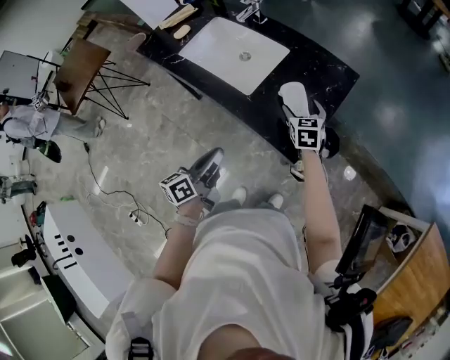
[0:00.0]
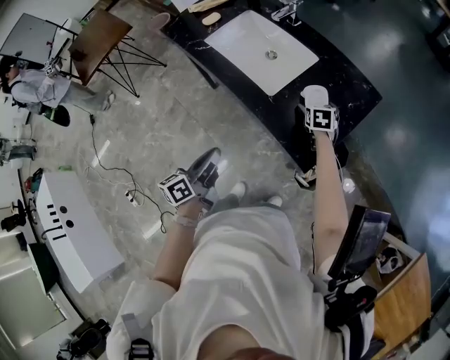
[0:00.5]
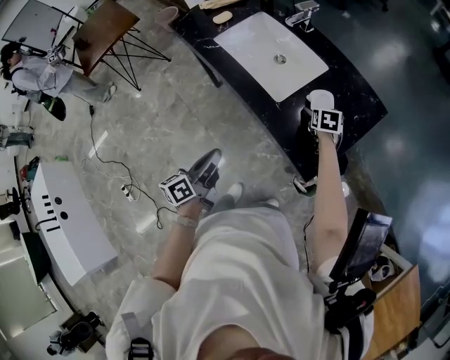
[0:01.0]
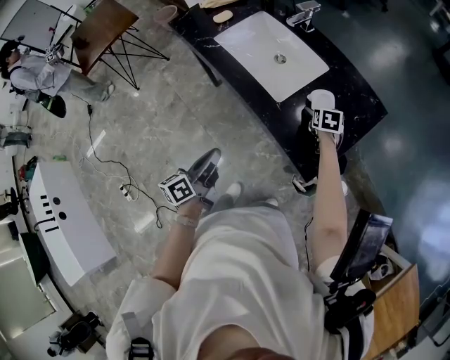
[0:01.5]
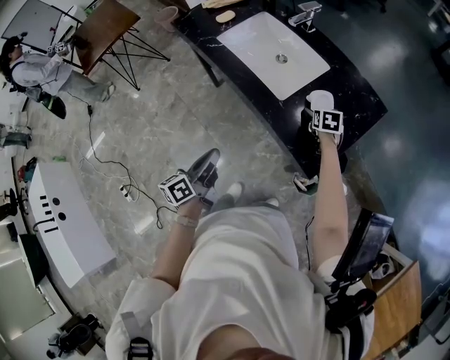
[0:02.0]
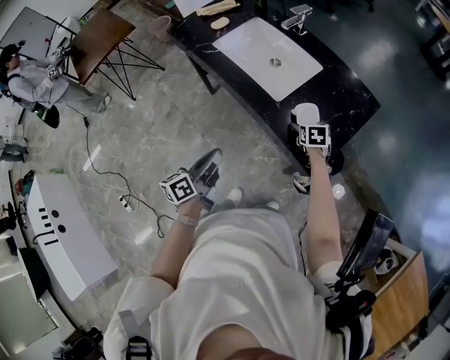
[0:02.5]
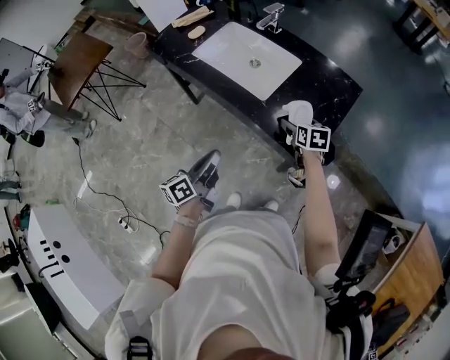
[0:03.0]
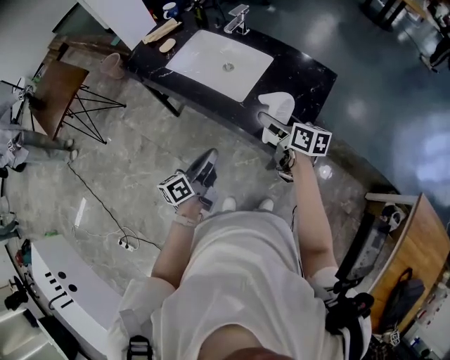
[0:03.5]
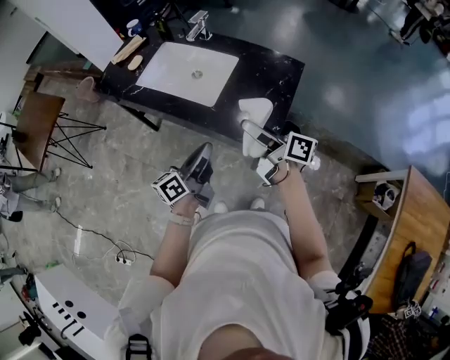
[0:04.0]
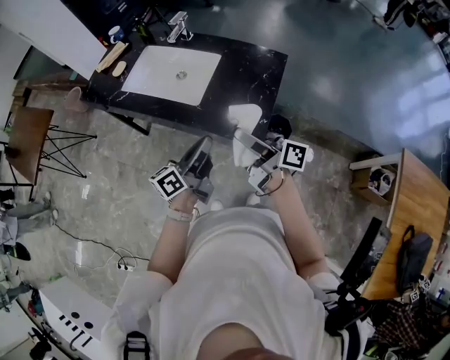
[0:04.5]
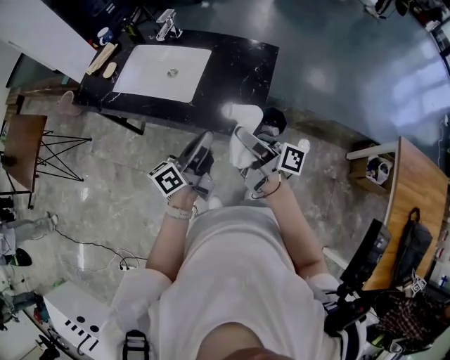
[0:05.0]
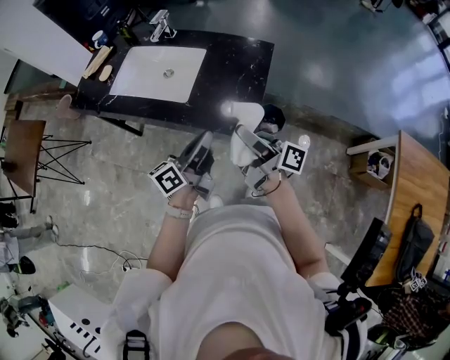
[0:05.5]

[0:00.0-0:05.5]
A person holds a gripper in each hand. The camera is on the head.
0:00.0 to 0:02.0: The right gripper moves downward and forward, about 10 cm, and swivels about 20 degrees. Meanwhile the left gripper goes about 10 cm to the left.
0:02.0 to 0:03.5: The right gripper shifts roughly 25 cm upward and backward, and points its fingers about 30 degrees further upward; the left gripper shifts by some 5 cm, and rotates roughly 20 degrees.
0:03.5 to 0:05.5: The left gripper heads to the right and upward, covering approximately 15 cm, and rotates roughly 20 degrees. The right gripper travels backward, upward and to the right by roughly 15 cm, and tips its fingers upward by roughly 40 degrees.

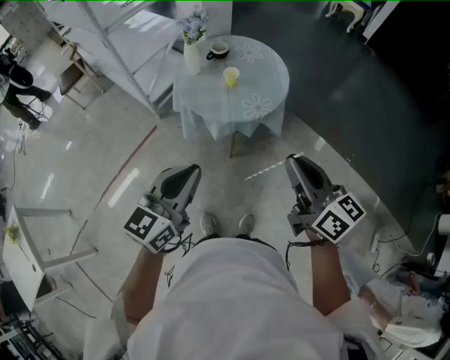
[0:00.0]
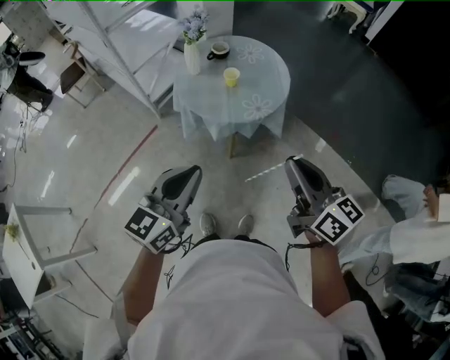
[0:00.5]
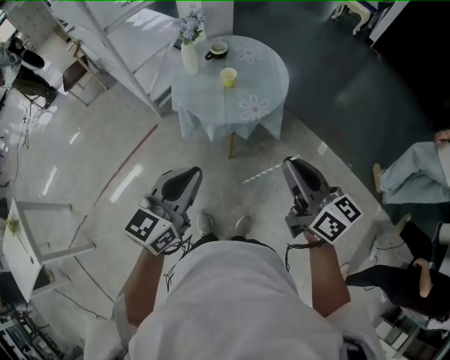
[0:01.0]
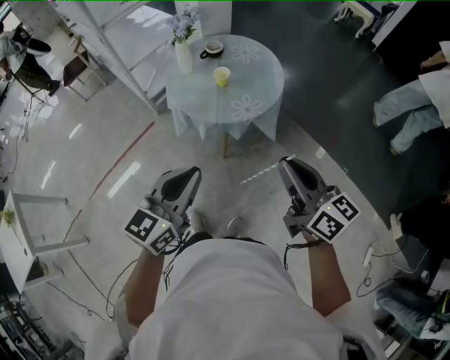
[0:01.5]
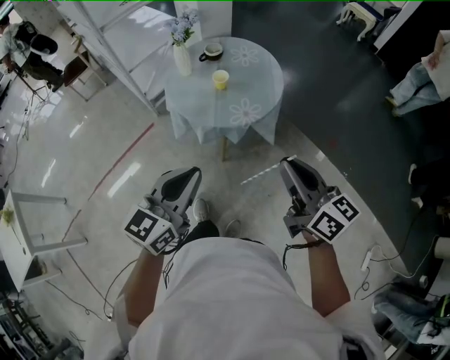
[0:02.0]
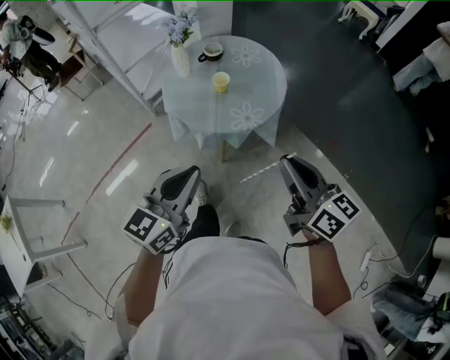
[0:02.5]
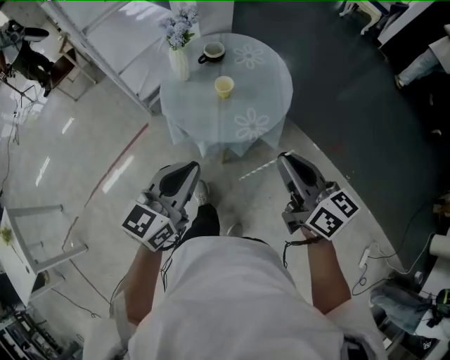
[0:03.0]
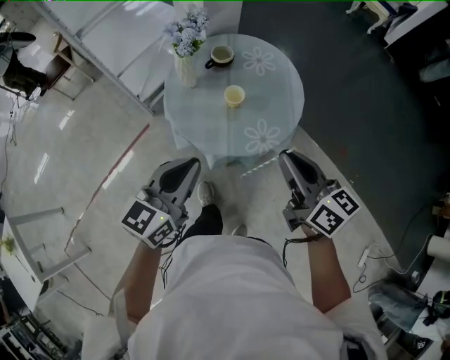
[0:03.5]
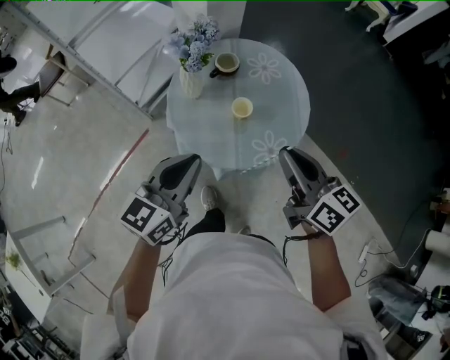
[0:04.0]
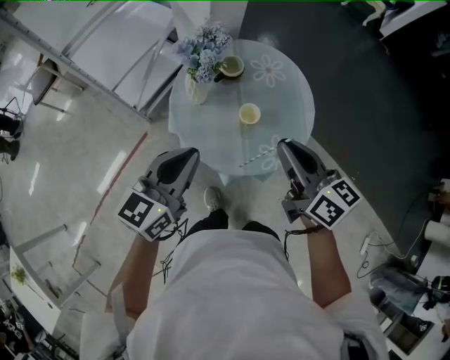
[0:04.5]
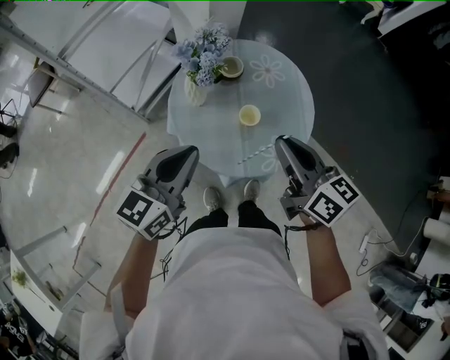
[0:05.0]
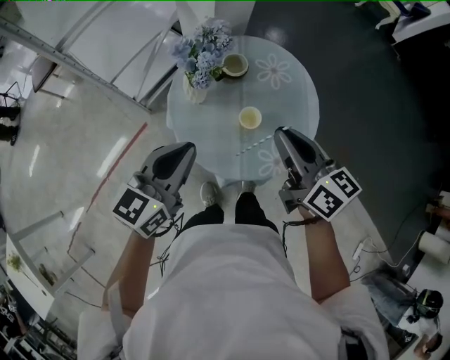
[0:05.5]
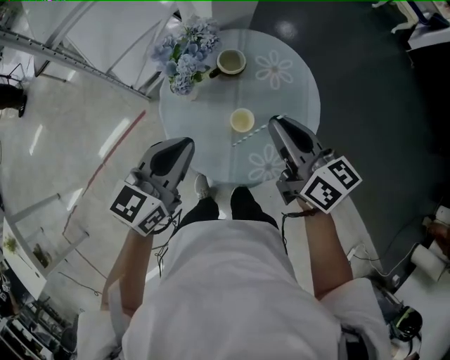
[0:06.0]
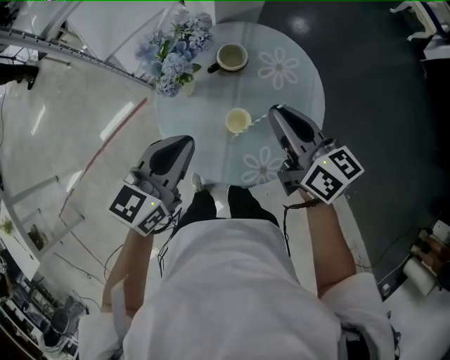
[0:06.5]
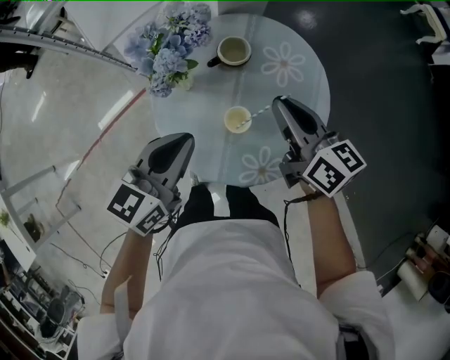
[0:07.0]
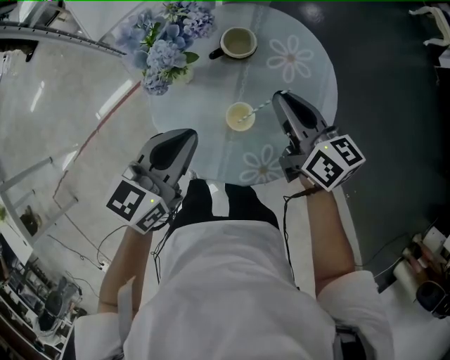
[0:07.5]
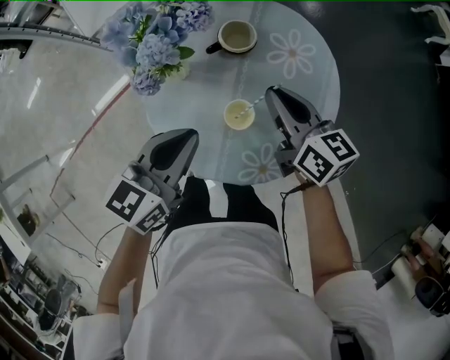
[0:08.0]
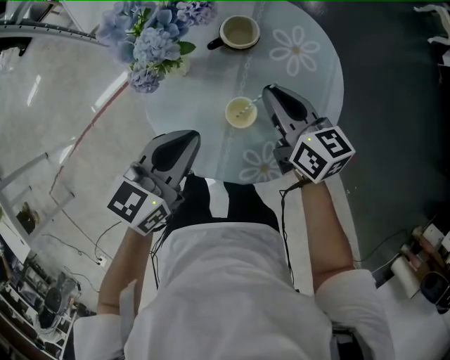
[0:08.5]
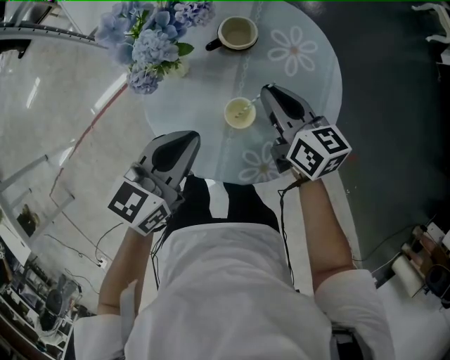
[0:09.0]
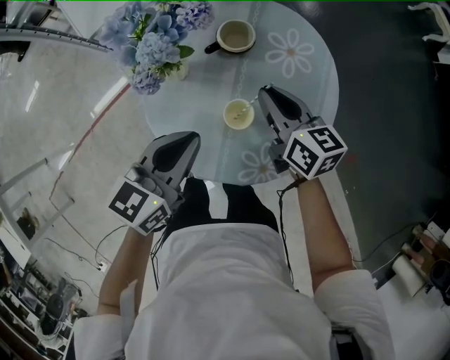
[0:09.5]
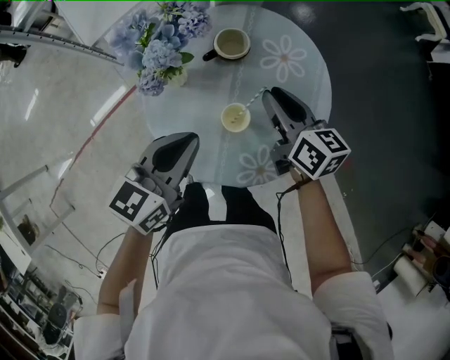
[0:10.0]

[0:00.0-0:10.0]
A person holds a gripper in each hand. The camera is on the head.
0:00.0 to 0:02.0: The two grippers go some 10 cm to the right.
0:02.0 to 0:04.0: Both grippers travel together forward and to the left, some 30 cm.
0:04.0 to 0:06.0: The grippers both shift forward by approximately 15 cm.
0:06.0 to 0:08.0: The left gripper shifts about 10 cm downward. The right gripper heads downward and forward, covering some 15 cm.
0:08.0 to 0:10.0: The grippers make only small movements.

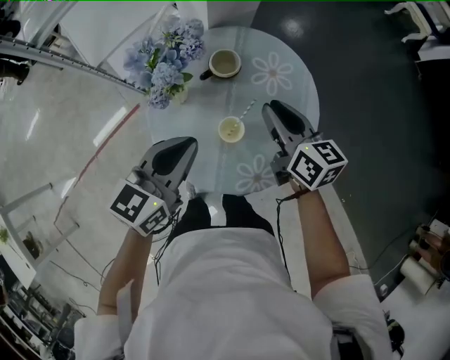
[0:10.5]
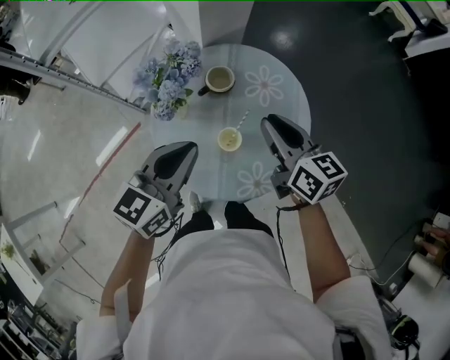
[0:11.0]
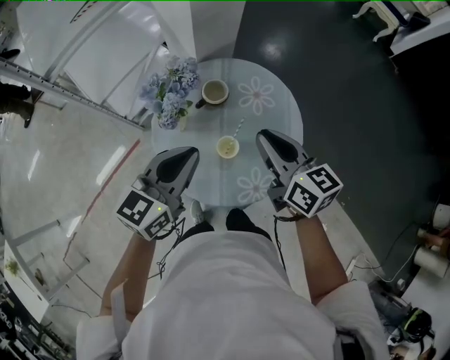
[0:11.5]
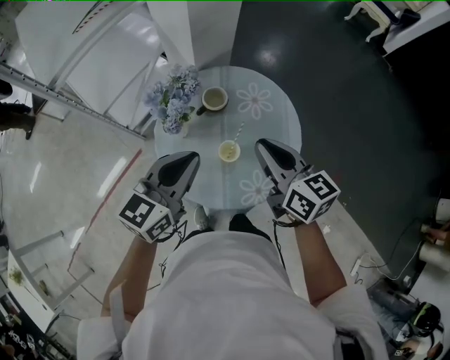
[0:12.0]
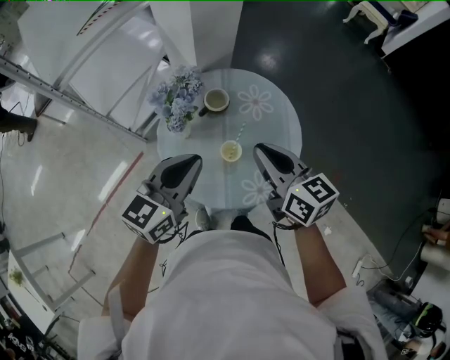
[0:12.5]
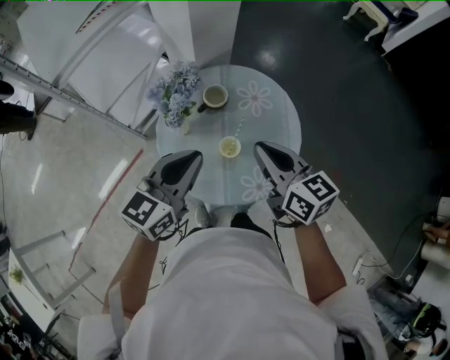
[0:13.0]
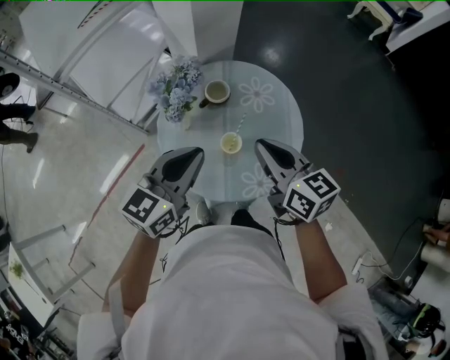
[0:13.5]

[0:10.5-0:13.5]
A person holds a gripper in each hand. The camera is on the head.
0:10.5 to 0:12.0: The right gripper moves upward and backward, about 15 cm. The left gripper travels upward by about 10 cm.
0:12.0 to 0:13.5: The grippers stay close to where they were, moving slightly.

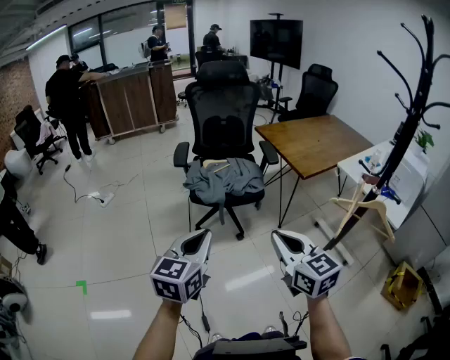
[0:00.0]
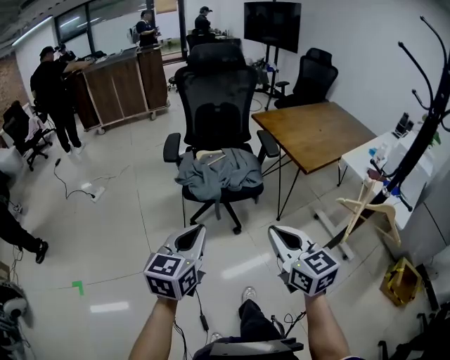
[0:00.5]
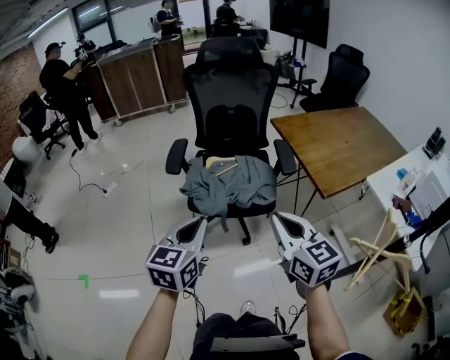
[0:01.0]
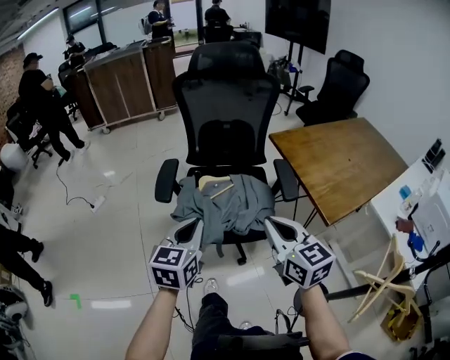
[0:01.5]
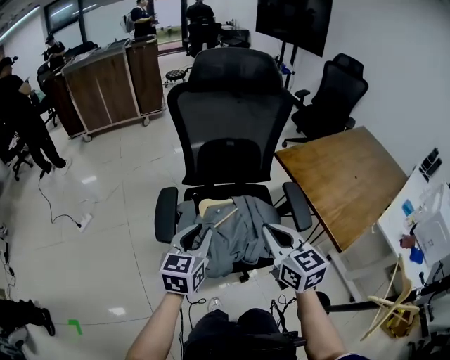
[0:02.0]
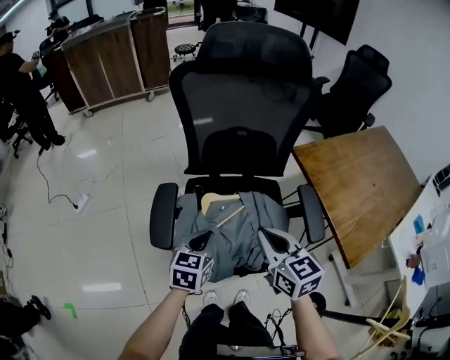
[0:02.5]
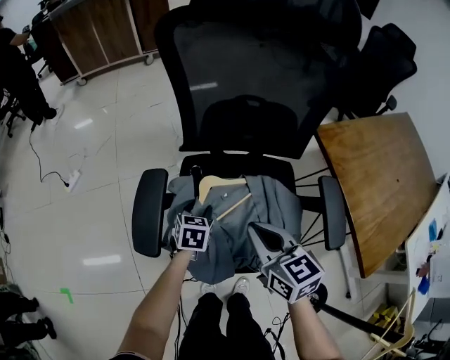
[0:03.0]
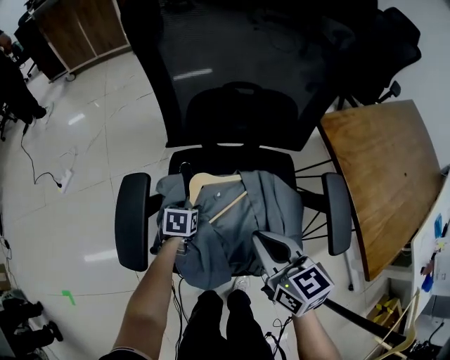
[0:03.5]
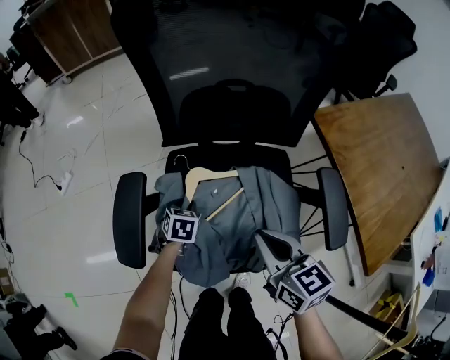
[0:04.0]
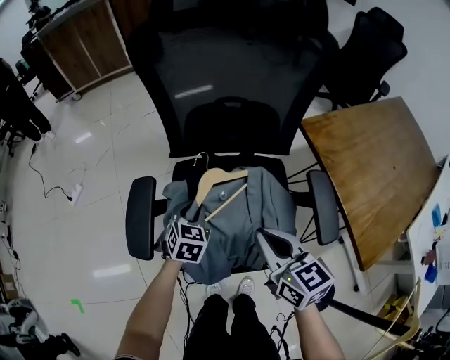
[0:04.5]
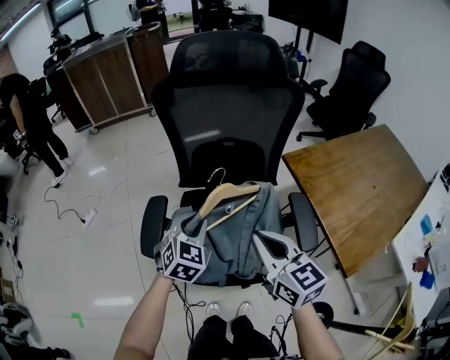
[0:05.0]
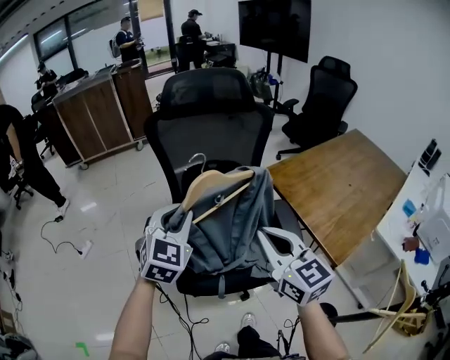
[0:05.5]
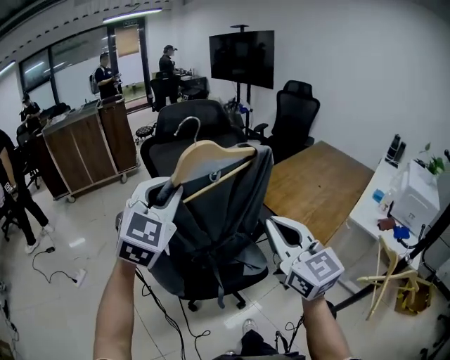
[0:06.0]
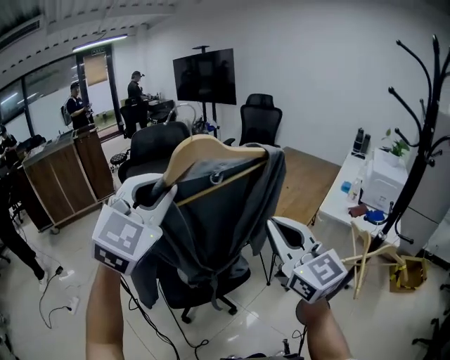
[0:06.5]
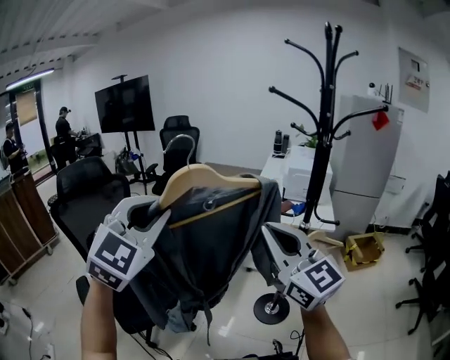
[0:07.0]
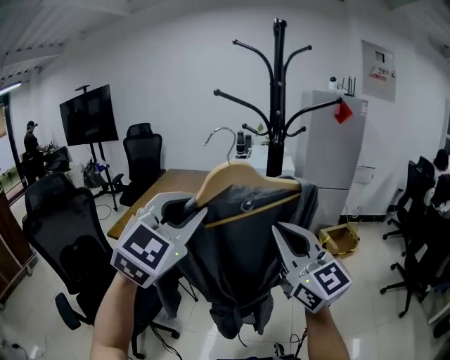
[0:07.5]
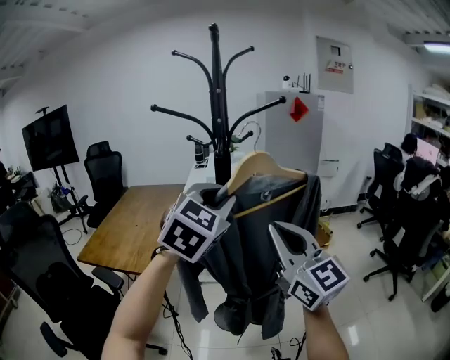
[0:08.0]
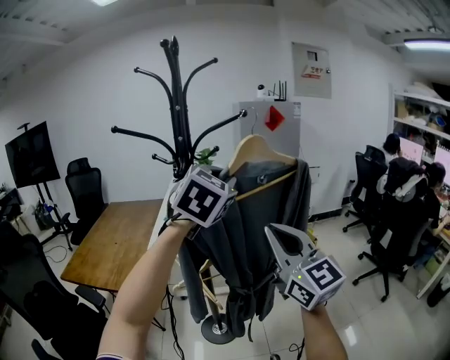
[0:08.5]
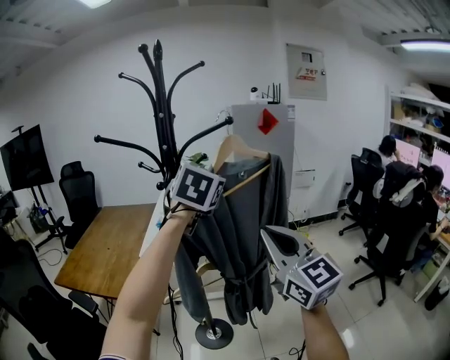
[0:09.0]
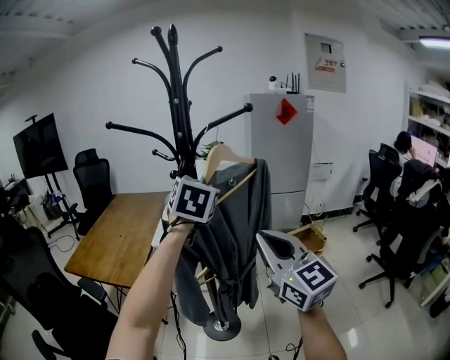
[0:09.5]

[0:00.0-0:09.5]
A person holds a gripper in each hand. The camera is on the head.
0:00.0 to 0:02.0: The pair of grippers is taken forward, some 50 cm.
0:02.0 to 0:04.0: The right gripper moves downward and forward, approximately 20 cm. Meanwhile the left gripper travels downward and forward by about 40 cm, points its fingers about 40 degrees further downward, and opens and closes again.
0:04.0 to 0:05.5: The right gripper shifts about 25 cm upward and backward, and changes its angle by some 30 degrees, while the left gripper goes roughly 50 cm upward, and angles its fingers upward, by about 40 degrees.
0:05.5 to 0:07.5: Both grippers are carried approximately 60 cm. The left gripper swivels about 70 degrees. The right gripper swivels approximately 60 degrees.
0:07.5 to 0:09.5: The right gripper is displaced to the right and forward by roughly 20 cm; the left gripper travels forward and to the right by approximately 35 cm, and changes its angle by roughly 30 degrees.
